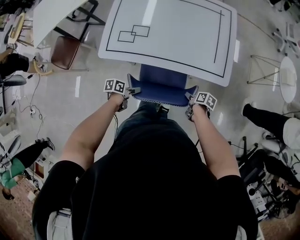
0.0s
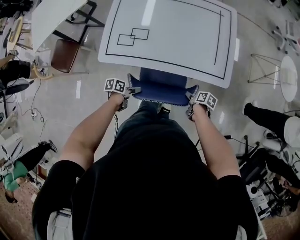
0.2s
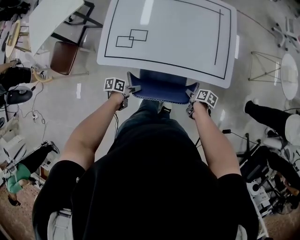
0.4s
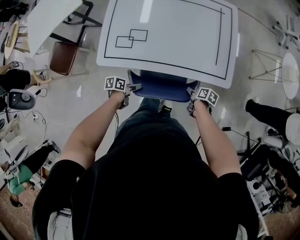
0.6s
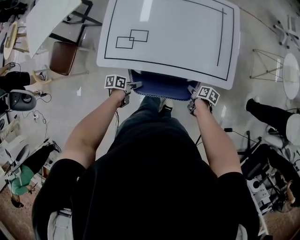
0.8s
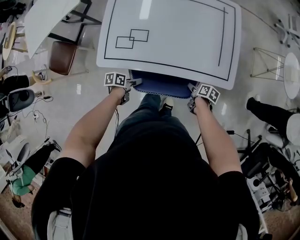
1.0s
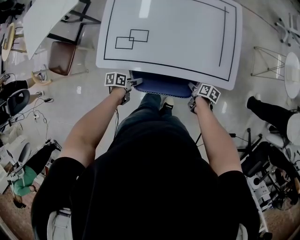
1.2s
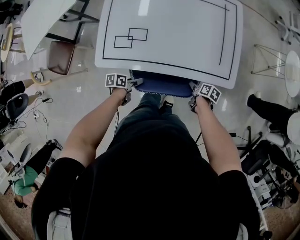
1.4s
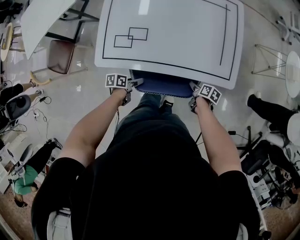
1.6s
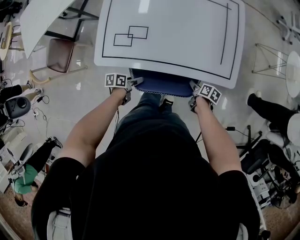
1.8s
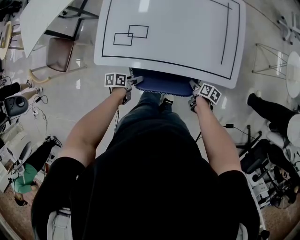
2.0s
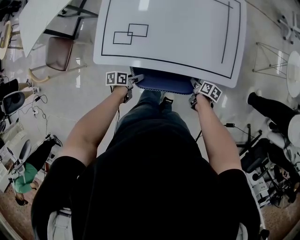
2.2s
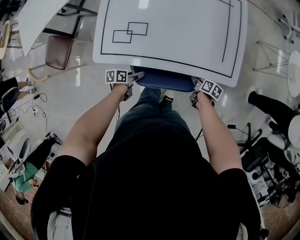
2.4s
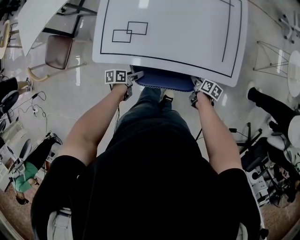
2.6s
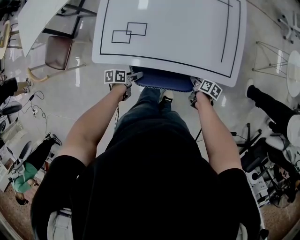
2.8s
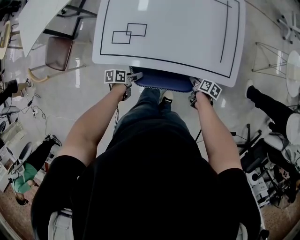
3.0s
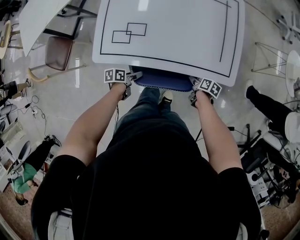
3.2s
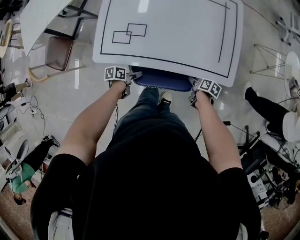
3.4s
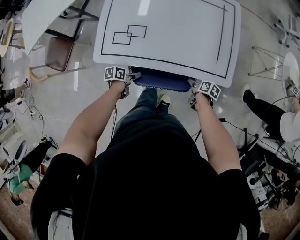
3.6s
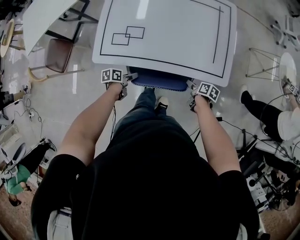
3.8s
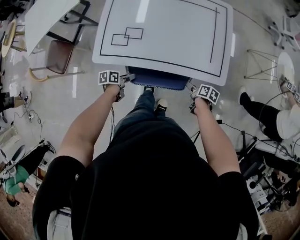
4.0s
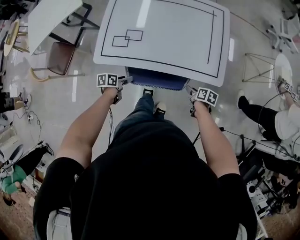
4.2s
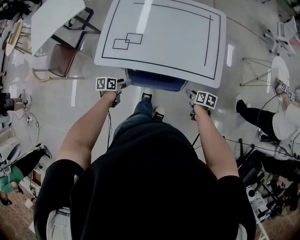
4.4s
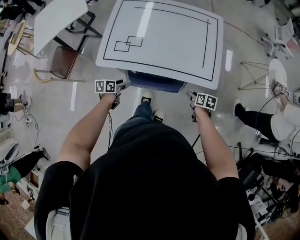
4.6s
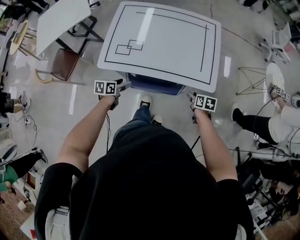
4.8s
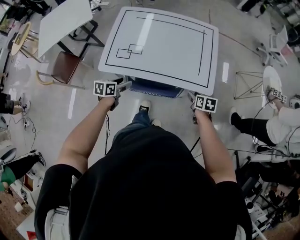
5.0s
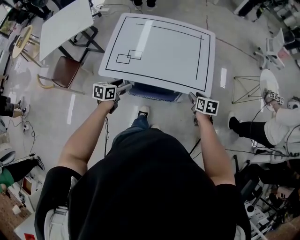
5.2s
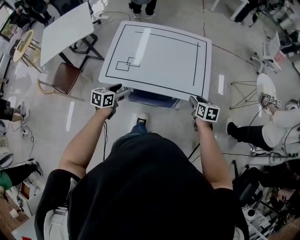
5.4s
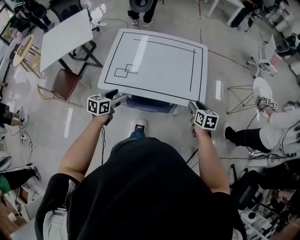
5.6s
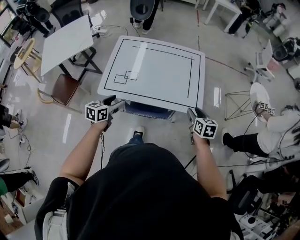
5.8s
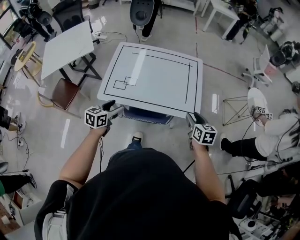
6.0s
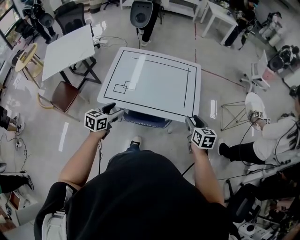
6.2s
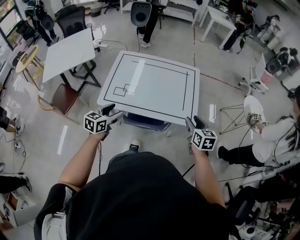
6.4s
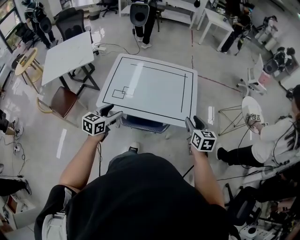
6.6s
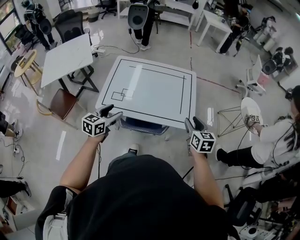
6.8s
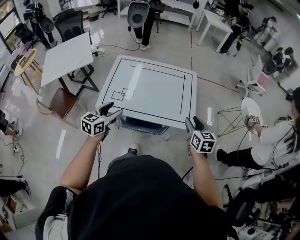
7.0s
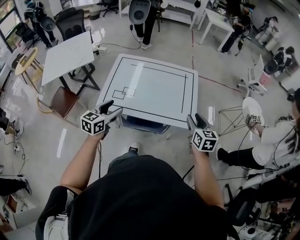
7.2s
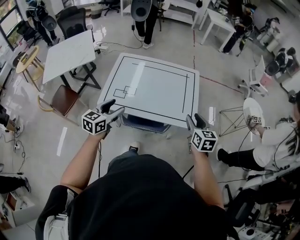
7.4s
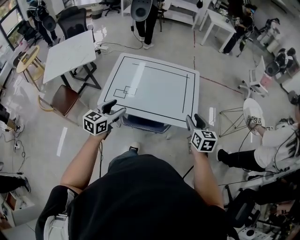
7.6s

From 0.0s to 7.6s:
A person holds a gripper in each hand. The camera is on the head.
From 0.0s to 1.6s: The right gripper moves some 10 cm; the left gripper shifts by roughly 10 cm.
From 1.6s to 3.0s: The grippers move only a little.
From 3.0s to 4.6s: The left gripper travels upward by approximately 10 cm; the right gripper shifts about 10 cm upward and to the right, and swivels roughly 20 degrees.
From 4.6s to 6.0s: The grippers both shift upward by some 25 cm. The left gripper changes its angle by about 40 degrees; the right gripper turns by approximately 30 degrees.
From 6.0s to 7.6s: The two grippers go about 10 cm upward.

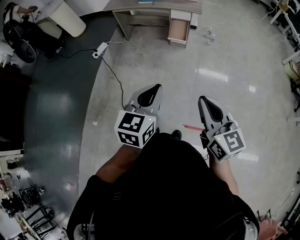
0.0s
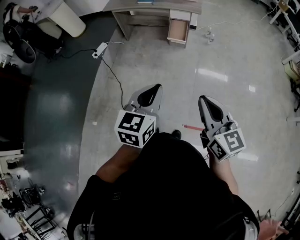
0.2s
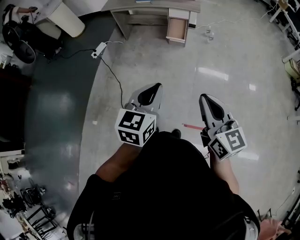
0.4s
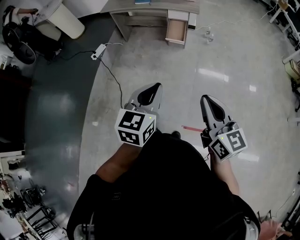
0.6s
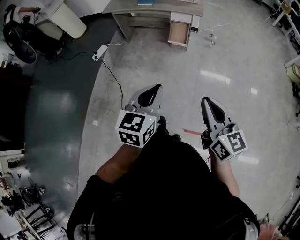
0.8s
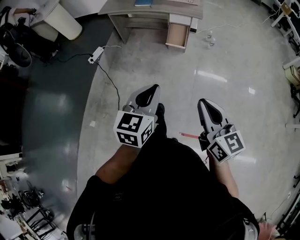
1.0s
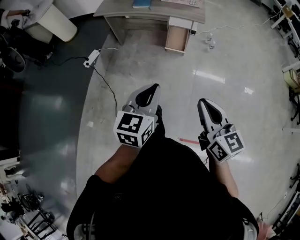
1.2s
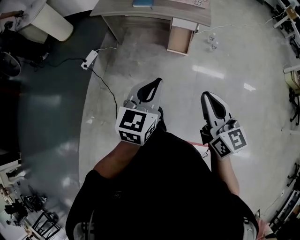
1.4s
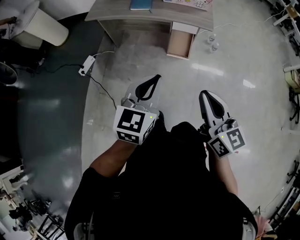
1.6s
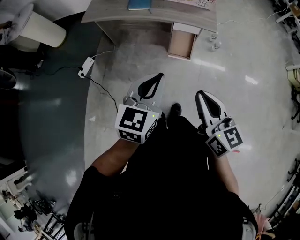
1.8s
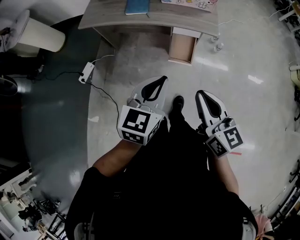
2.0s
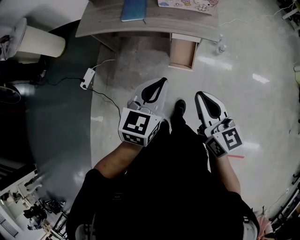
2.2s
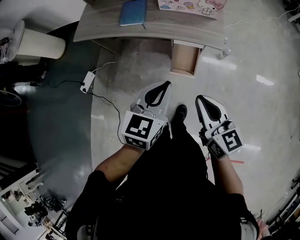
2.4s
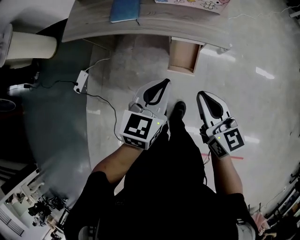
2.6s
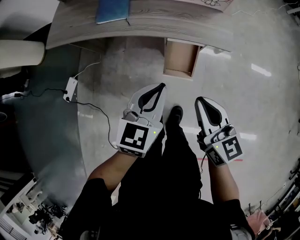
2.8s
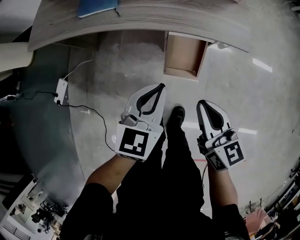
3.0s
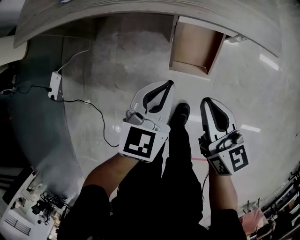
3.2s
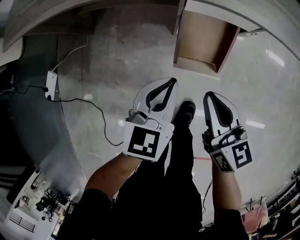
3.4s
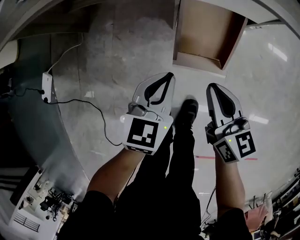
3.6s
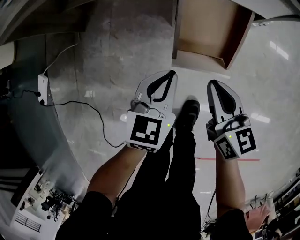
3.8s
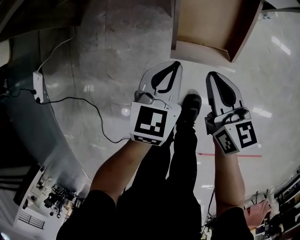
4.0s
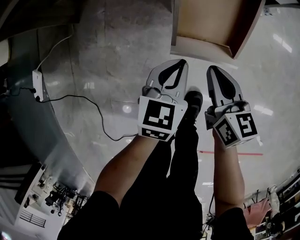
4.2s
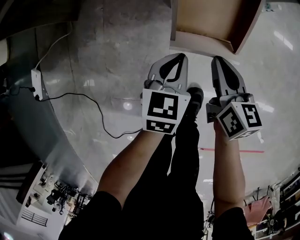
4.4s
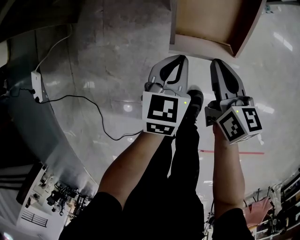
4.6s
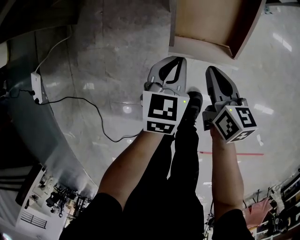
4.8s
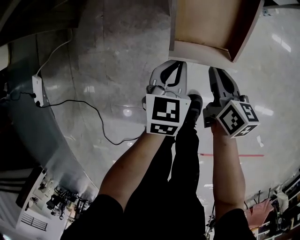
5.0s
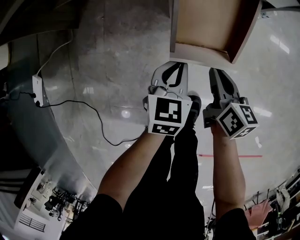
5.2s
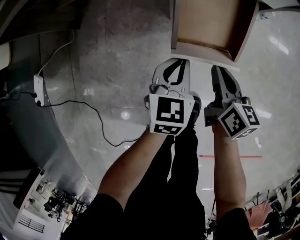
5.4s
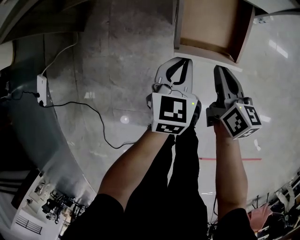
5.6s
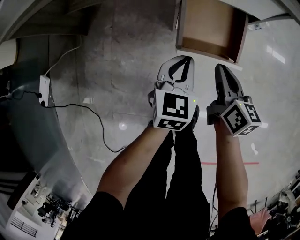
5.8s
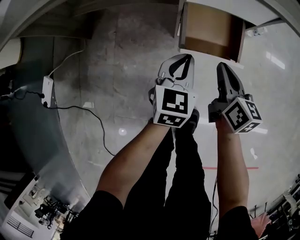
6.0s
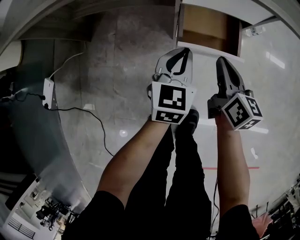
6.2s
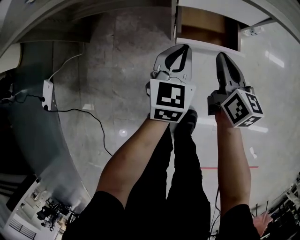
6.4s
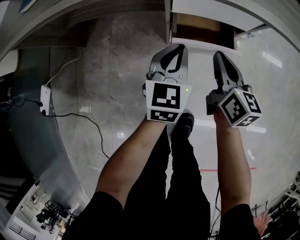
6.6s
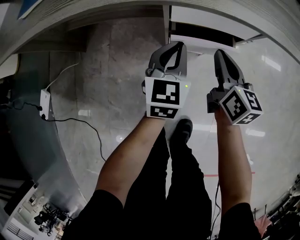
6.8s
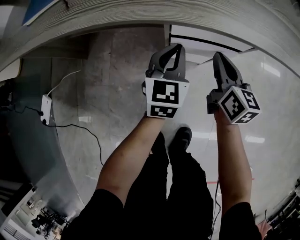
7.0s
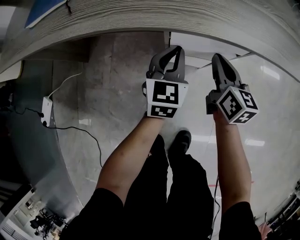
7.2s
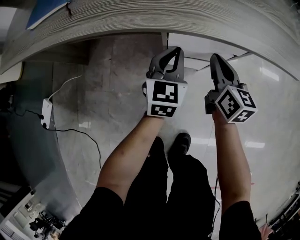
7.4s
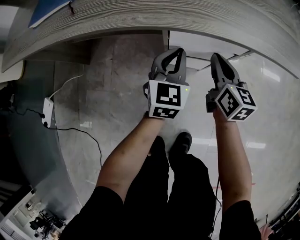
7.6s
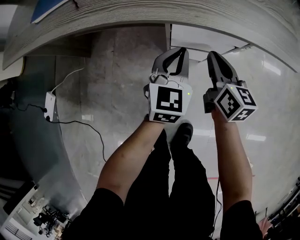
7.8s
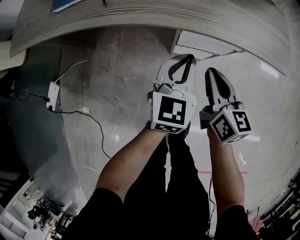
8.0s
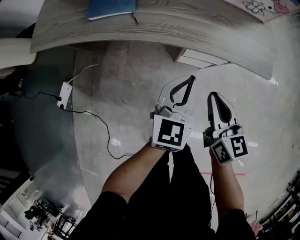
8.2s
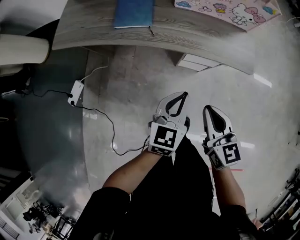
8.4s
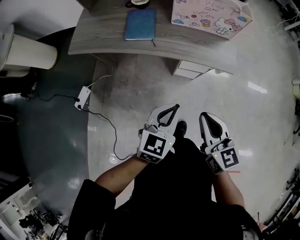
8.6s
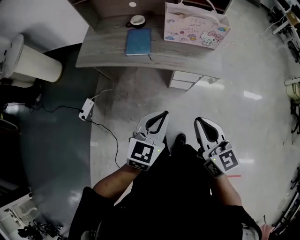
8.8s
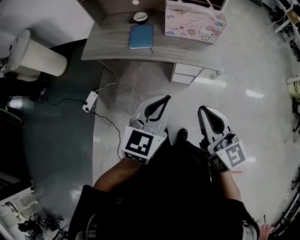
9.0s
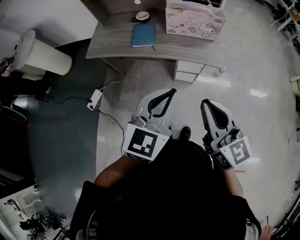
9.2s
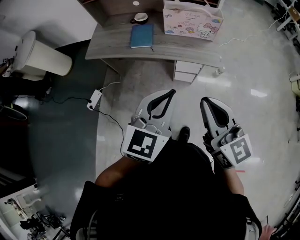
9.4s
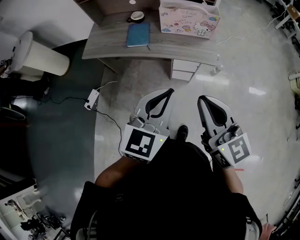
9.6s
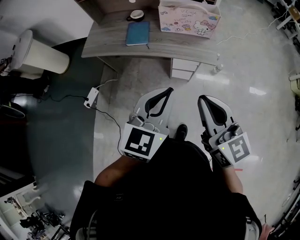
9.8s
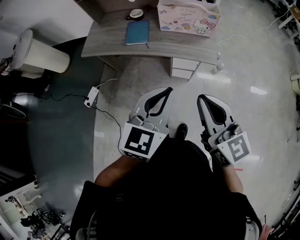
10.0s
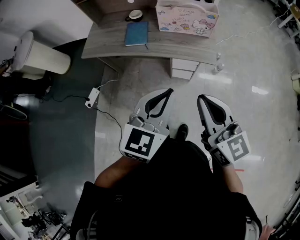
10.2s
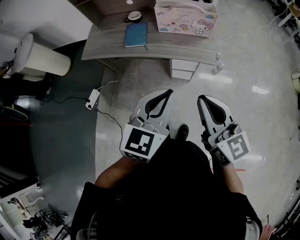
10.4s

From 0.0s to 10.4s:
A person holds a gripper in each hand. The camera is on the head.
From 0.0s to 1.4s: The two grippers go approximately 30 cm forward.
From 1.4s to 3.0s: The pair of grippers is taken forward, some 40 cm. The two grippers go roughly 30 cm downward.
From 3.0s to 4.4s: Both grippers travel together downward, about 35 cm.
From 4.4s to 6.0s: The right gripper shifts roughly 5 cm upward. The left gripper shifts some 10 cm upward and forward.
From 6.0s to 7.4s: The two grippers go some 15 cm forward.
From 7.4s to 9.0s: The two grippers go roughly 70 cm upward and backward. The right gripper swivels some 30 degrees.
From 9.0s to 10.4s: The grippers both shift to the right by about 5 cm.

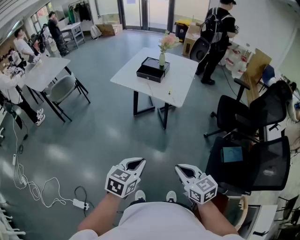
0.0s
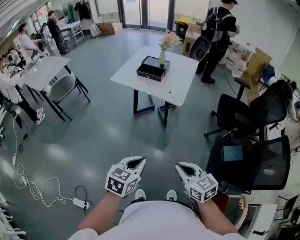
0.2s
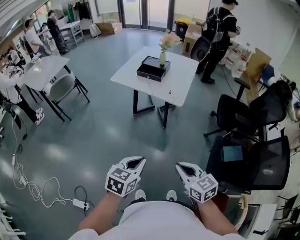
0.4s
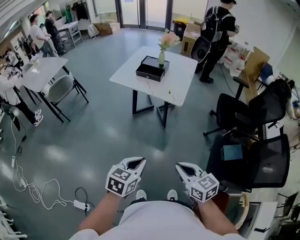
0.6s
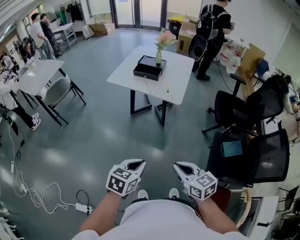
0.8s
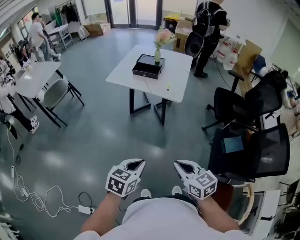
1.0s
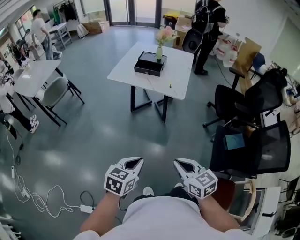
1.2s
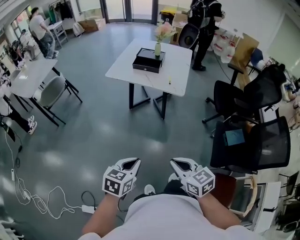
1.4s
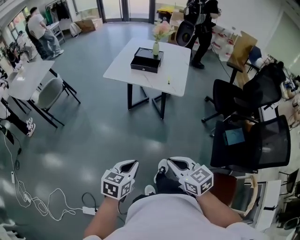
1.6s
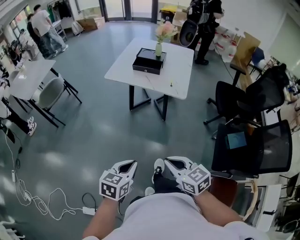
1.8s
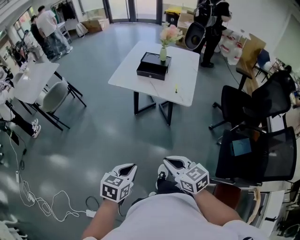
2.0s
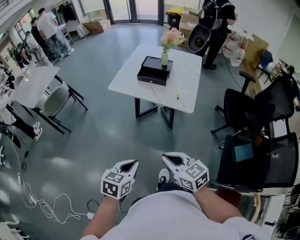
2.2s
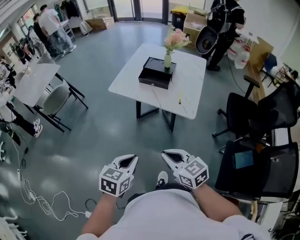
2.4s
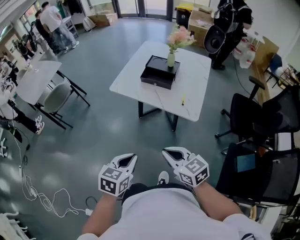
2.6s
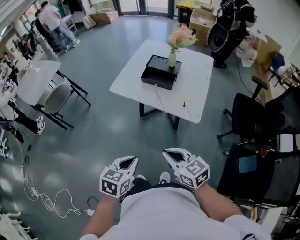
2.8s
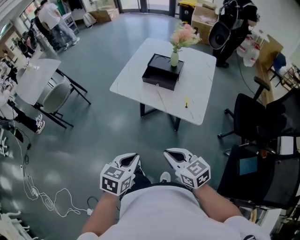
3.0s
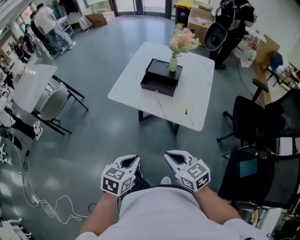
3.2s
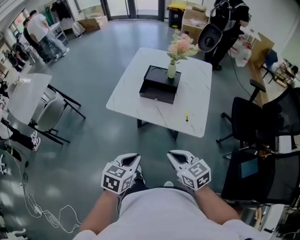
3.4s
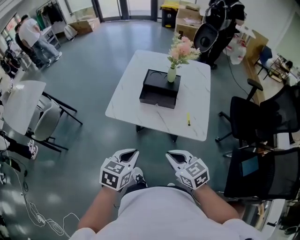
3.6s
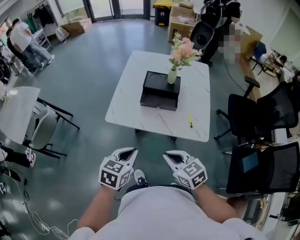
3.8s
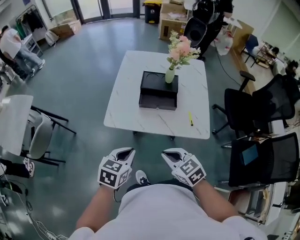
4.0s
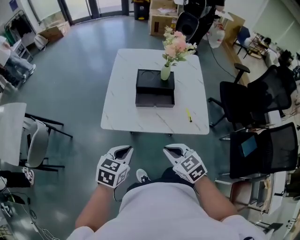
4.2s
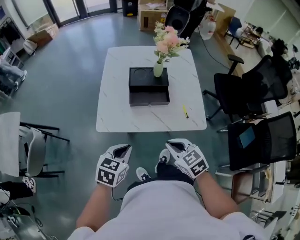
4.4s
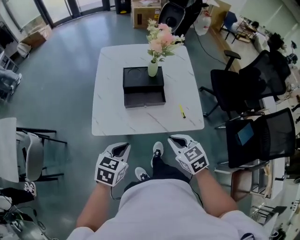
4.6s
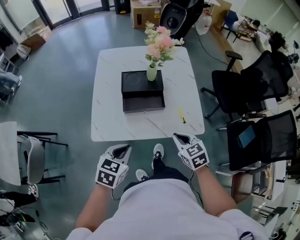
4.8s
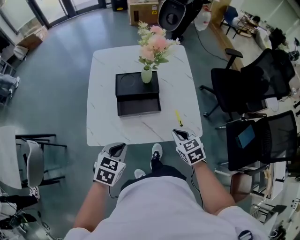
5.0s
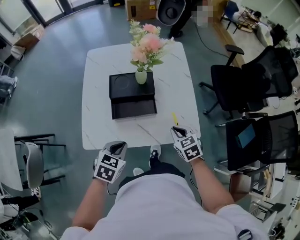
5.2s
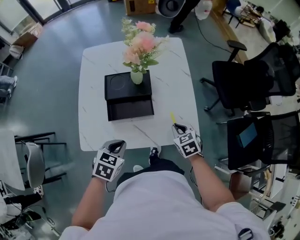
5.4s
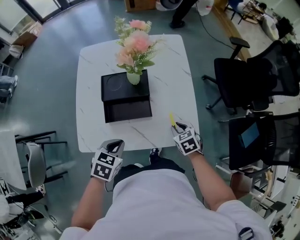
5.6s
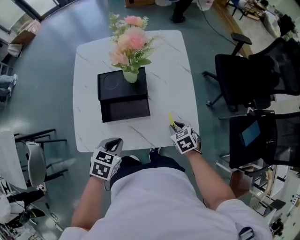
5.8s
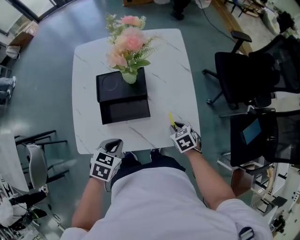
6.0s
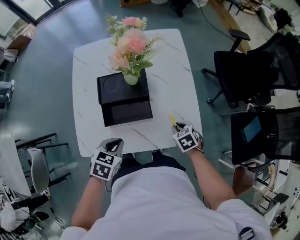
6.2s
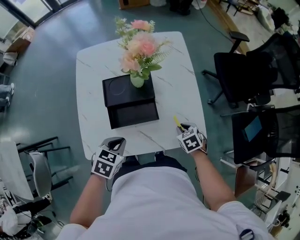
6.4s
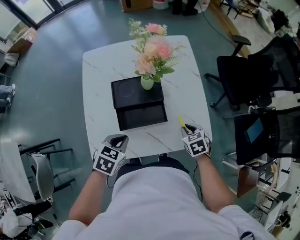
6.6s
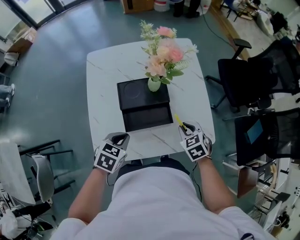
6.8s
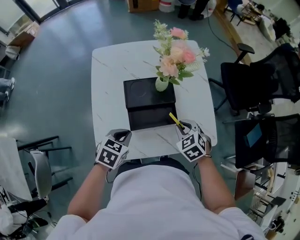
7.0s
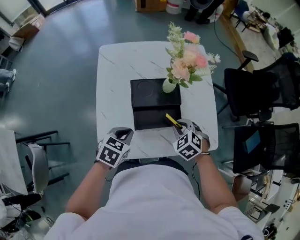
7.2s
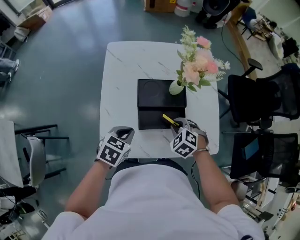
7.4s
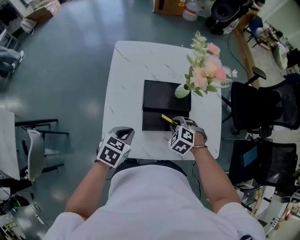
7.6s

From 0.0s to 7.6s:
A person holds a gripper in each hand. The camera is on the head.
From 0.0s to 1.6s: The two grippers go roughly 15 cm to the left.
From 1.6s to 3.0s: Both grippers move forward, about 25 cm.
From 3.0s to 4.6s: The left gripper ends up roughly 30 cm from where it was, and changes its angle by approximately 30 degrees. The right gripper changes place by about 25 cm, and turns by approximately 30 degrees.
From 4.6s to 6.0s: The right gripper shifts some 30 cm downward, forward and to the right, and turns by approximately 20 degrees, while the left gripper heads forward and downward, covering about 15 cm.
From 6.0s to 7.6s: Both grippers travel together to the left, approximately 20 cm. The right gripper rotates around the line of its fingers by about 50 degrees, counterclockwise from behind.
